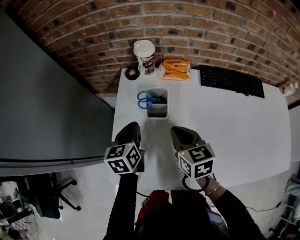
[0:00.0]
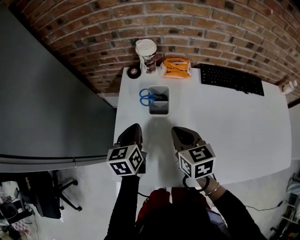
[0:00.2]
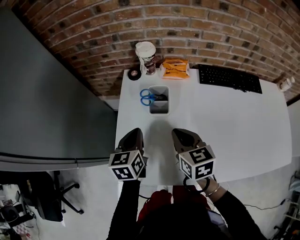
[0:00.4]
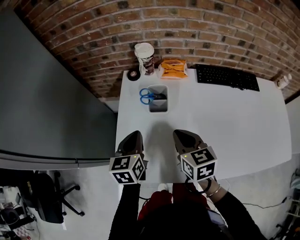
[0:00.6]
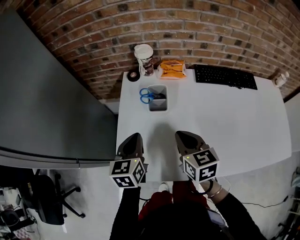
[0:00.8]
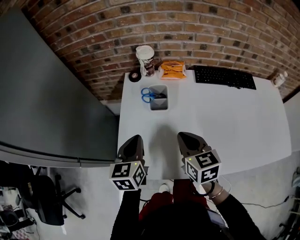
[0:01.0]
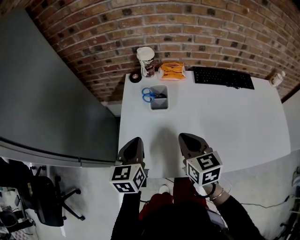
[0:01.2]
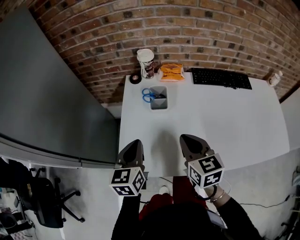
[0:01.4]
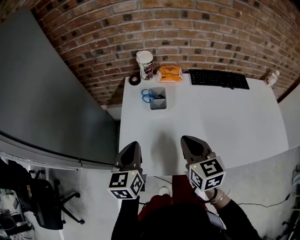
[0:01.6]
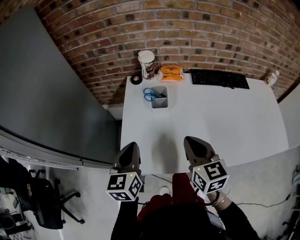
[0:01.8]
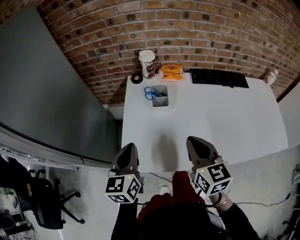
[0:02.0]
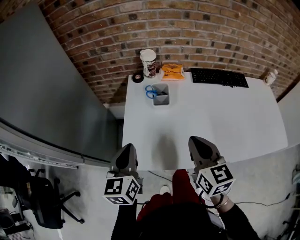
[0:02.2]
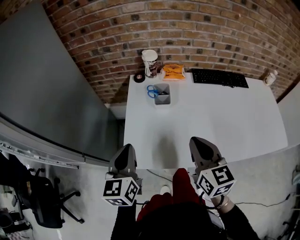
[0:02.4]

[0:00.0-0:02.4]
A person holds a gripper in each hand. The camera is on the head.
0:00.0 to 0:01.2: The right gripper is displaced backward by roughly 10 cm, while the left gripper travels backward and upward by roughly 15 cm.
0:01.2 to 0:02.4: The left gripper goes roughly 10 cm backward, upward and to the left. The right gripper shifts some 10 cm backward and upward.

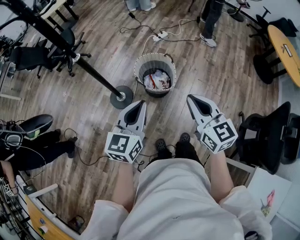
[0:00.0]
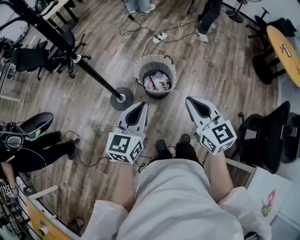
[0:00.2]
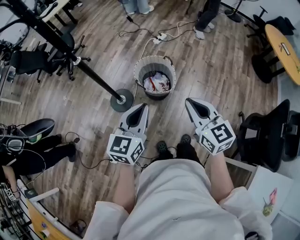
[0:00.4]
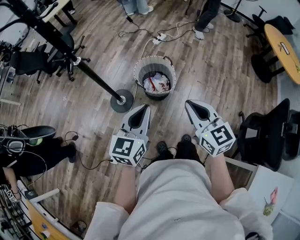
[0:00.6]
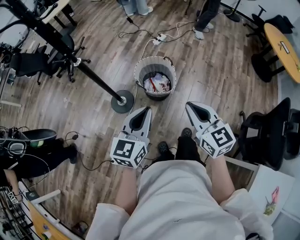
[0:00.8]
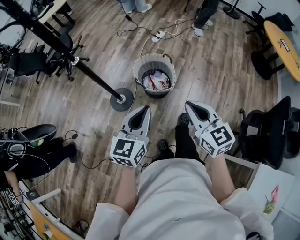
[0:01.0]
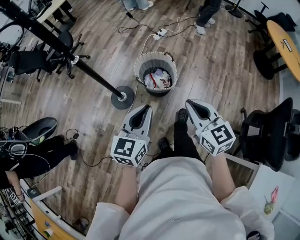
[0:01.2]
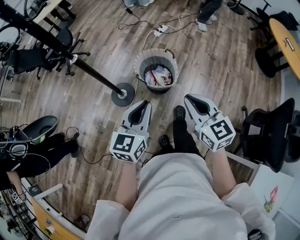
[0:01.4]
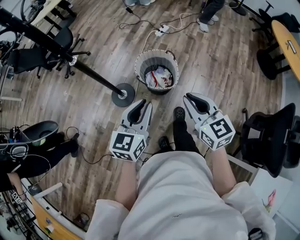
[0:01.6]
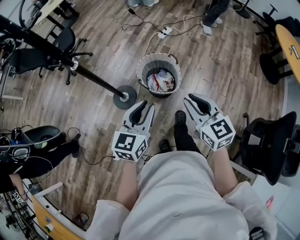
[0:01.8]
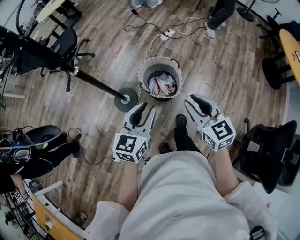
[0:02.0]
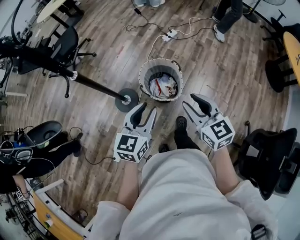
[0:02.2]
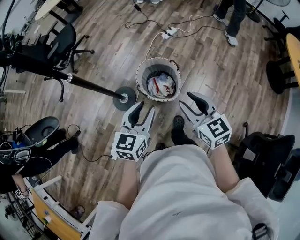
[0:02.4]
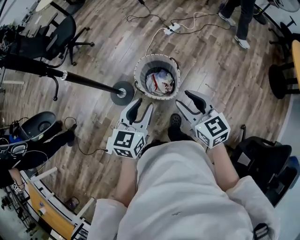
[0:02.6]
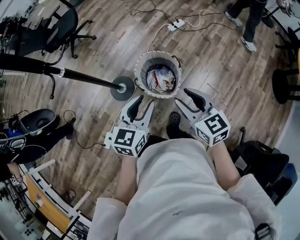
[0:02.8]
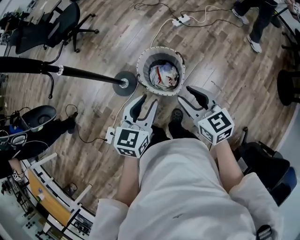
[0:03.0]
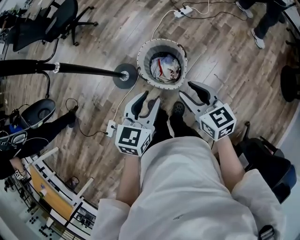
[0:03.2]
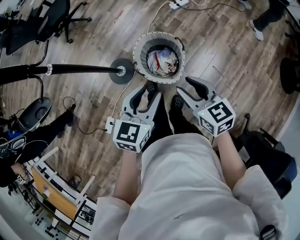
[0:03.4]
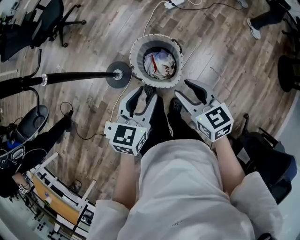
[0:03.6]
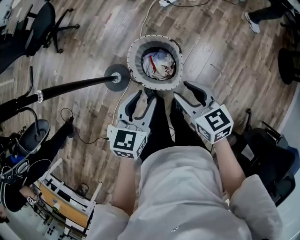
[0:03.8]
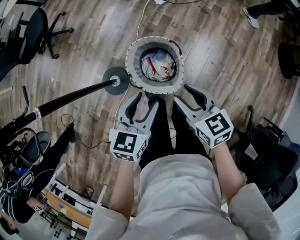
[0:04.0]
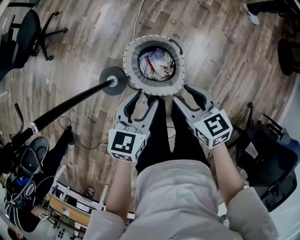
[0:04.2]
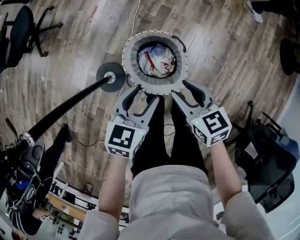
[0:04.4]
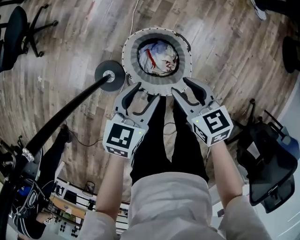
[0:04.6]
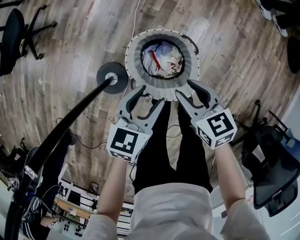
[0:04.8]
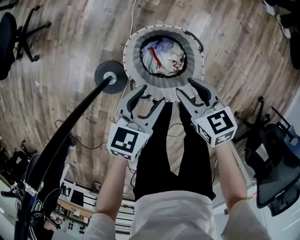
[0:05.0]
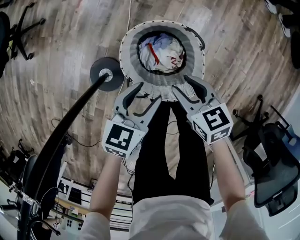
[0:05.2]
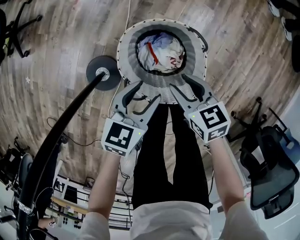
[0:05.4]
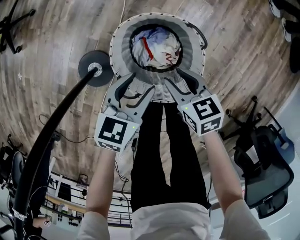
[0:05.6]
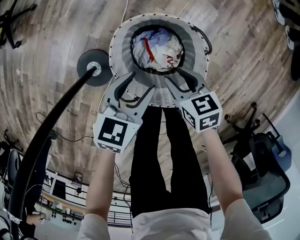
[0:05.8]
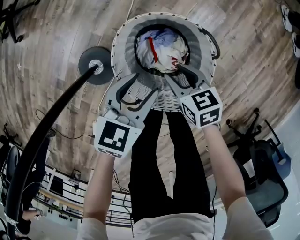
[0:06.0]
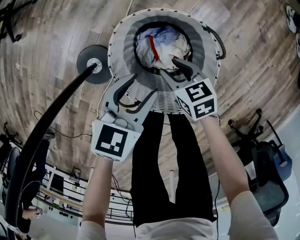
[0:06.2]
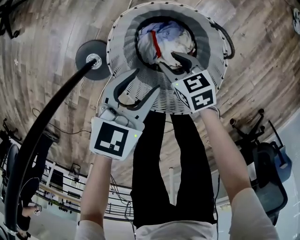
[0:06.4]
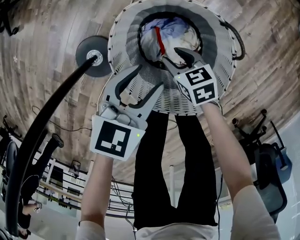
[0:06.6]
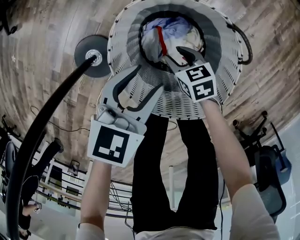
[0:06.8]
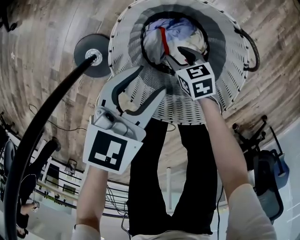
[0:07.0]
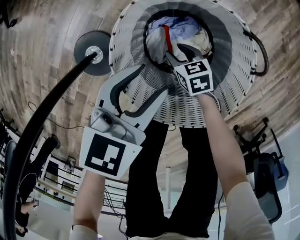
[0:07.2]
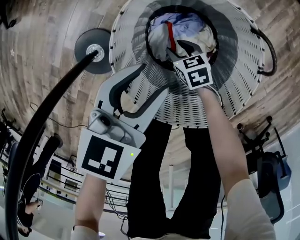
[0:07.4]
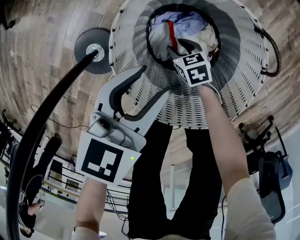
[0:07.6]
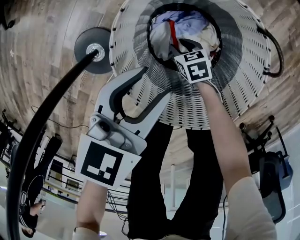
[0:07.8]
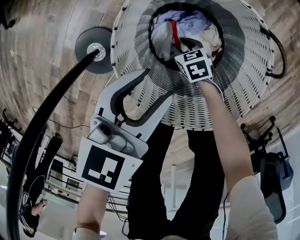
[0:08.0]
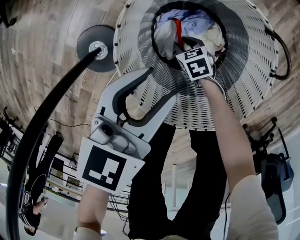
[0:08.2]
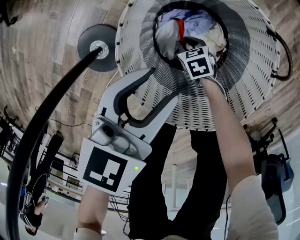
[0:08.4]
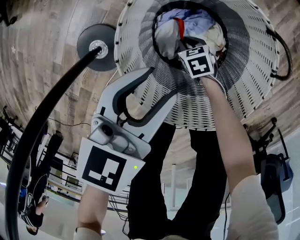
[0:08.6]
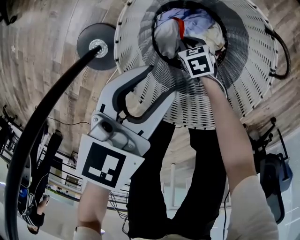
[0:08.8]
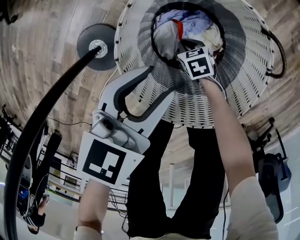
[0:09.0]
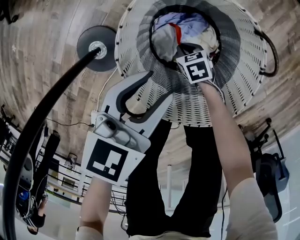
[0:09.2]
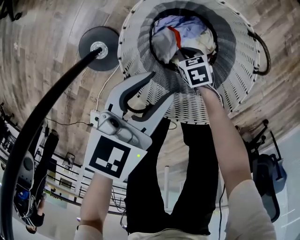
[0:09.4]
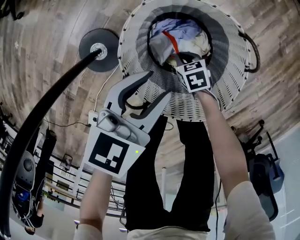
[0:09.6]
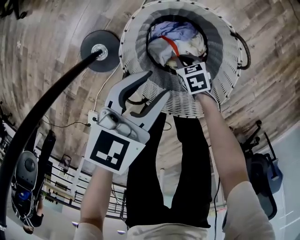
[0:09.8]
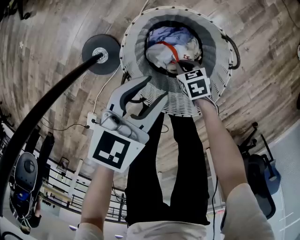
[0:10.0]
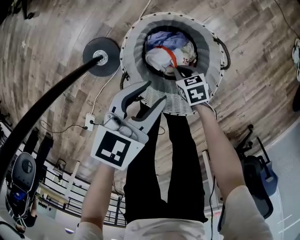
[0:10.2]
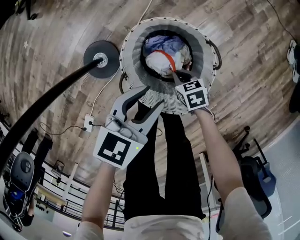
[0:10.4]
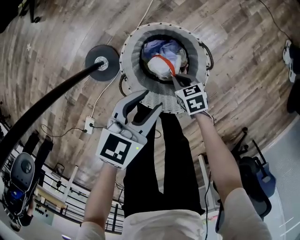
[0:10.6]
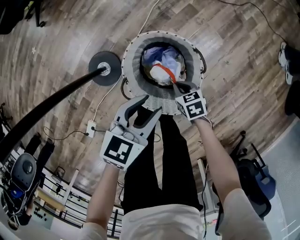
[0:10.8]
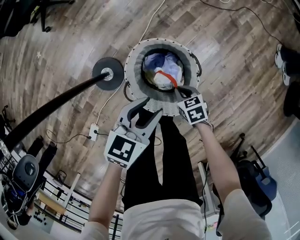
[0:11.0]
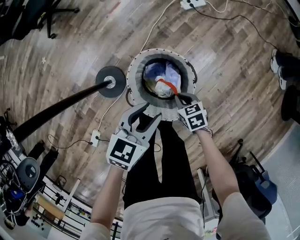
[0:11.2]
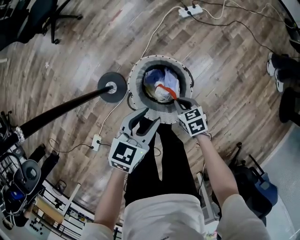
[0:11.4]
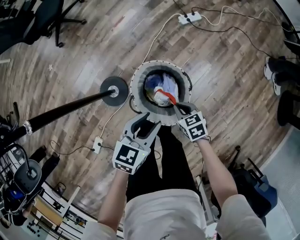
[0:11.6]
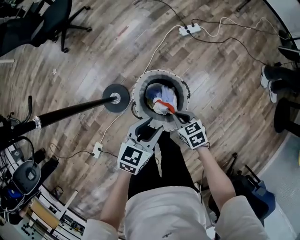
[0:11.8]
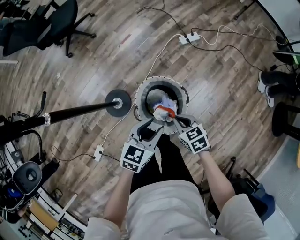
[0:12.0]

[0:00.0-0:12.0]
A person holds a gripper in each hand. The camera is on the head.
0:00.0 to 0:01.6: There are only small adjustments of the grippers.
0:01.6 to 0:03.0: The grippers both shift forward and to the right by roughly 20 cm. The right gripper swivels about 20 degrees, and opens its fingers.
0:03.0 to 0:04.4: Both grippers move downward and forward, approximately 20 cm. The right gripper turns by roughly 20 degrees. Meanwhile the left gripper swivels about 20 degrees.
0:04.4 to 0:06.0: The two grippers go about 25 cm downward.
0:06.0 to 0:07.6: The right gripper heads downward, covering about 25 cm; the left gripper is displaced downward by about 10 cm.
0:07.6 to 0:09.0: The right gripper closes.
0:09.0 to 0:10.4: The right gripper heads upward, covering approximately 20 cm; the left gripper is displaced upward by roughly 15 cm.
0:10.4 to 0:12.0: The left gripper is displaced upward by approximately 20 cm, while the right gripper moves upward, about 35 cm.

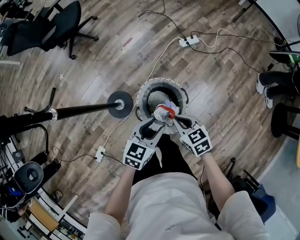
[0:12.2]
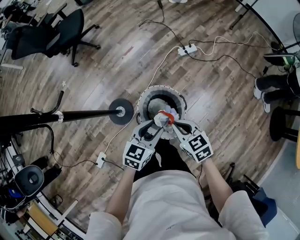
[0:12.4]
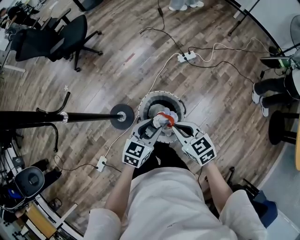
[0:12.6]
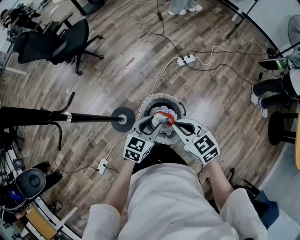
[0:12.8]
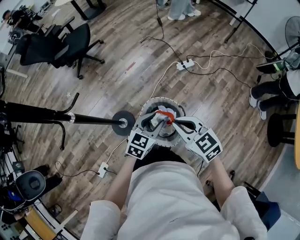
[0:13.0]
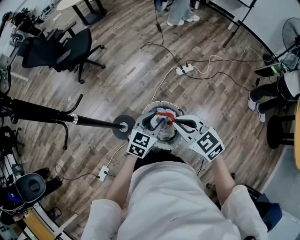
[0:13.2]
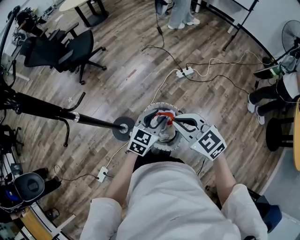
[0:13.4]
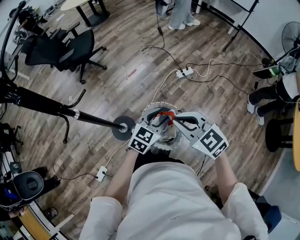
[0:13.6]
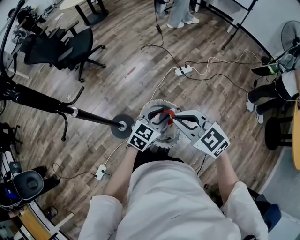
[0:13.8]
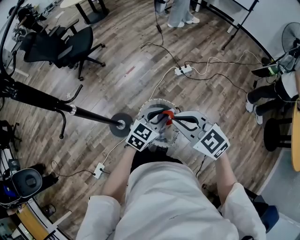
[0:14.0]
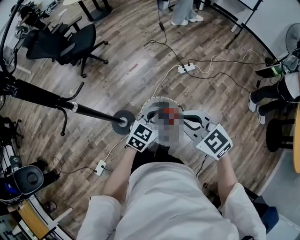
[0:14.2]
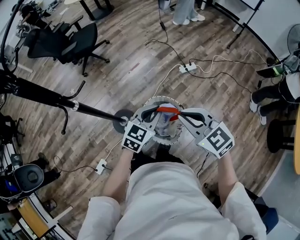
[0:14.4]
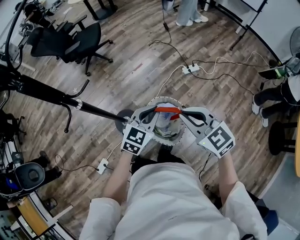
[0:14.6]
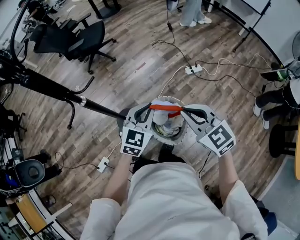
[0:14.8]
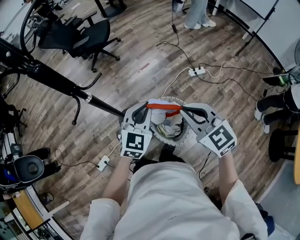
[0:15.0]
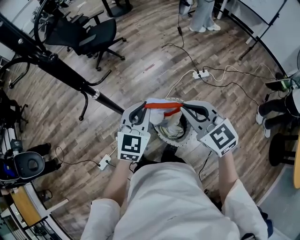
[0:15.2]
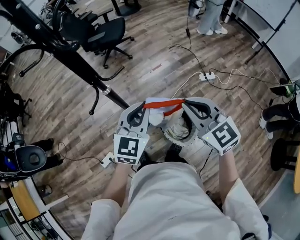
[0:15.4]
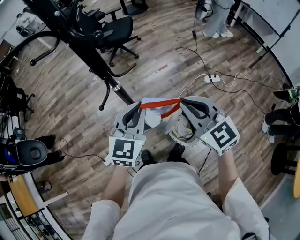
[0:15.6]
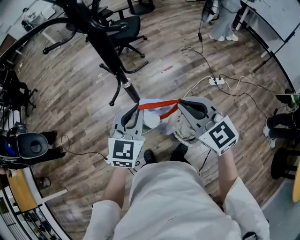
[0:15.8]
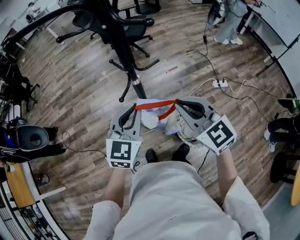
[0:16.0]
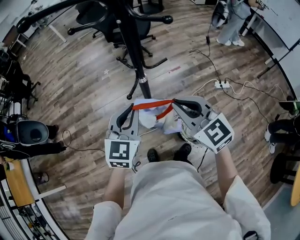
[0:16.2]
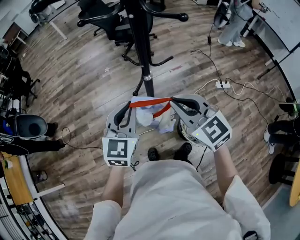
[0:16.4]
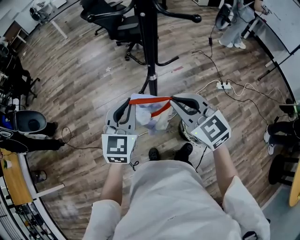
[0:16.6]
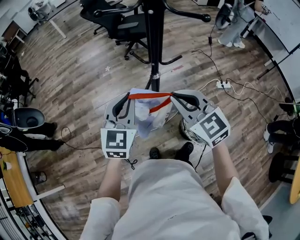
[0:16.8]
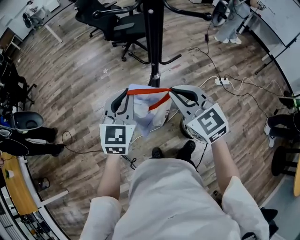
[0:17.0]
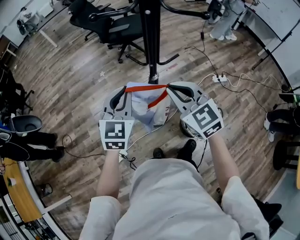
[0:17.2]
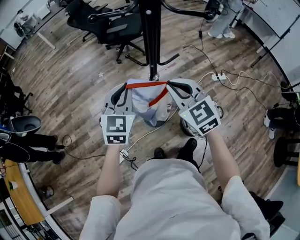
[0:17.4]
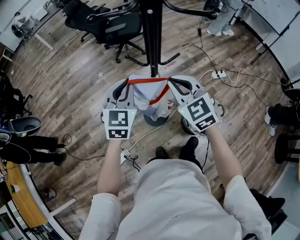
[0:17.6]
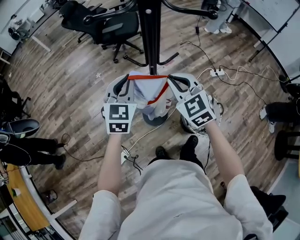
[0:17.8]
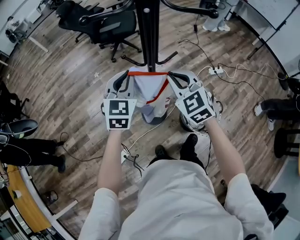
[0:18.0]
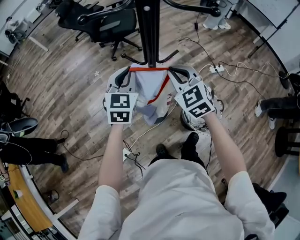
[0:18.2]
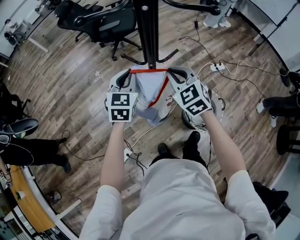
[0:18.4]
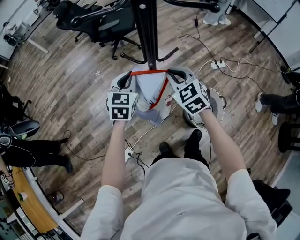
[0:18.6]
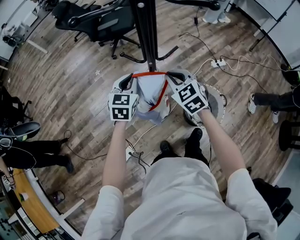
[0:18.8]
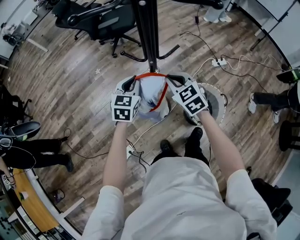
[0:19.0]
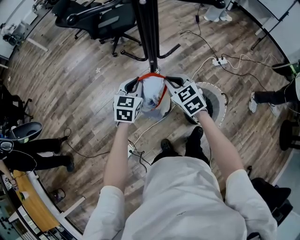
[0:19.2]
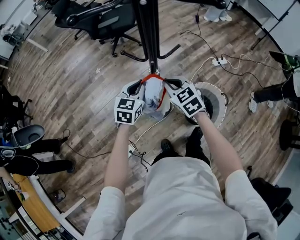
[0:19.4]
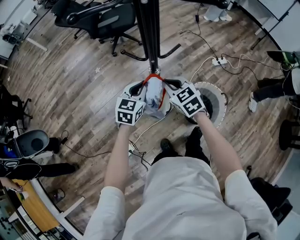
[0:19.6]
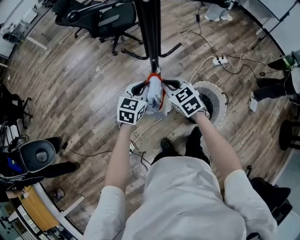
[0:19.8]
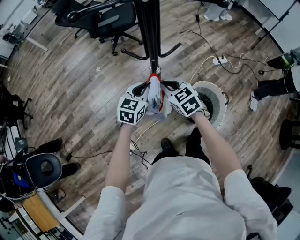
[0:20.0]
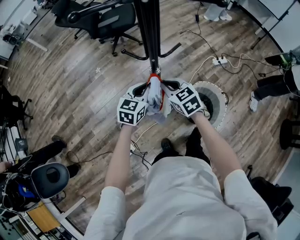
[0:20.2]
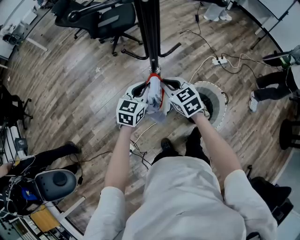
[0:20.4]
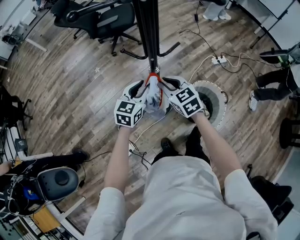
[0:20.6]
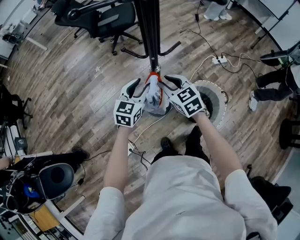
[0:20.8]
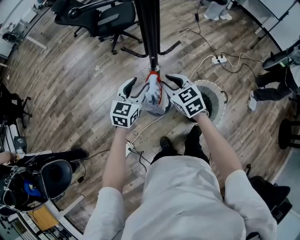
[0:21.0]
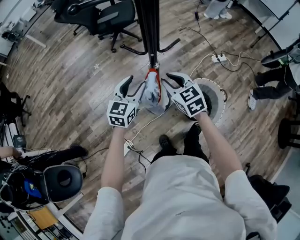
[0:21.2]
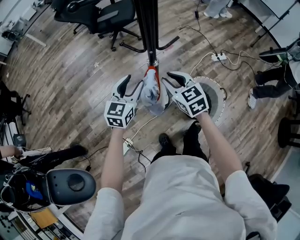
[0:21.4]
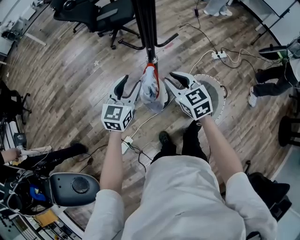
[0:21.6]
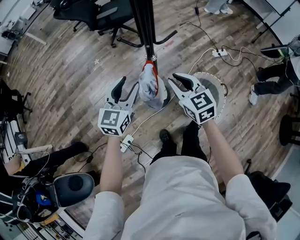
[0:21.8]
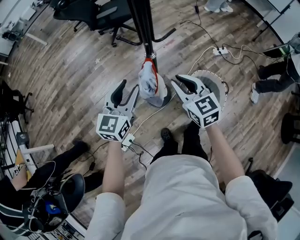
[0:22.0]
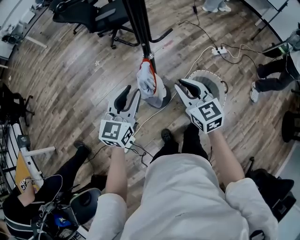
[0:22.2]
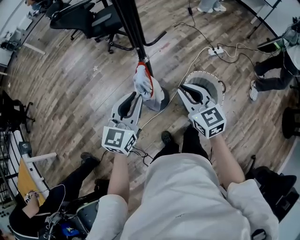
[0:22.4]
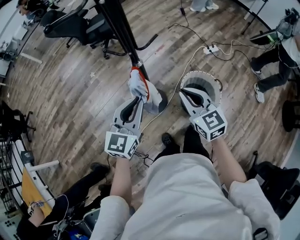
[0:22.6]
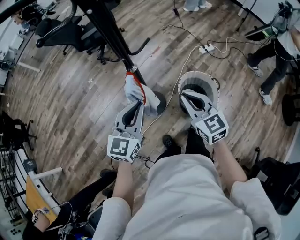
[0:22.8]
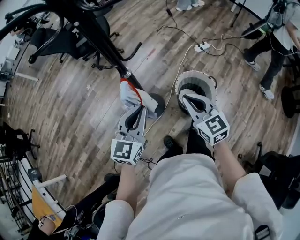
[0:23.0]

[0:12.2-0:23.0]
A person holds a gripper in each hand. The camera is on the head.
0:12.2 to 0:13.8: The right gripper is displaced upward by roughly 25 cm, and rotates approximately 30 degrees. Meanwhile the left gripper is displaced upward by roughly 10 cm.
0:13.8 to 0:15.2: The right gripper moves to the left and upward, roughly 10 cm; the left gripper goes some 20 cm to the left and upward, rotates about 30 degrees, and closes its fingers.
0:15.2 to 0:16.8: The grippers both shift to the left by roughly 30 cm.
0:16.8 to 0:18.4: Both grippers travel together forward and downward, about 15 cm. The right gripper turns by about 30 degrees.
0:18.4 to 0:20.0: Both grippers move downward, approximately 10 cm. The left gripper rotates some 20 degrees; the right gripper changes its angle by some 20 degrees.
0:20.0 to 0:21.4: The left gripper ends up approximately 5 cm from where it was, and opens up.
0:21.4 to 0:23.0: The left gripper shifts approximately 15 cm backward, to the right and upward, and closes, while the right gripper travels to the right and backward by some 20 cm.
